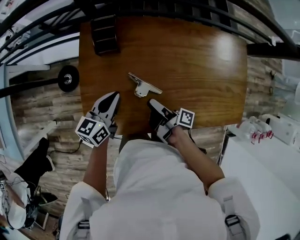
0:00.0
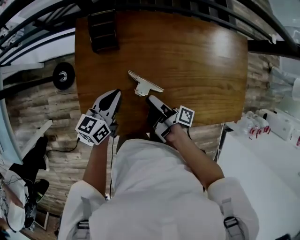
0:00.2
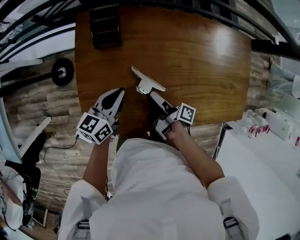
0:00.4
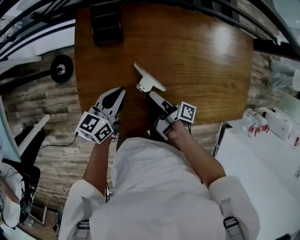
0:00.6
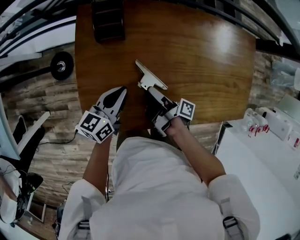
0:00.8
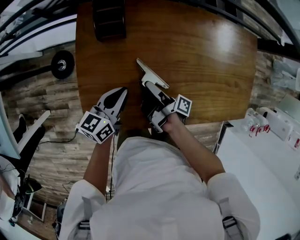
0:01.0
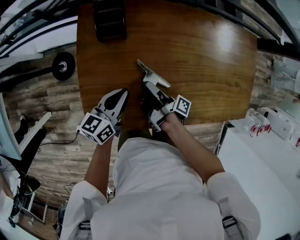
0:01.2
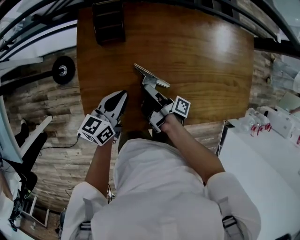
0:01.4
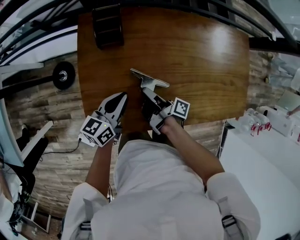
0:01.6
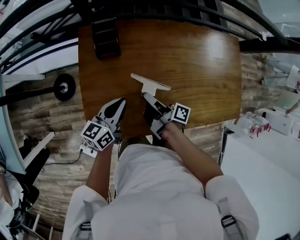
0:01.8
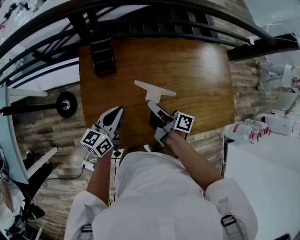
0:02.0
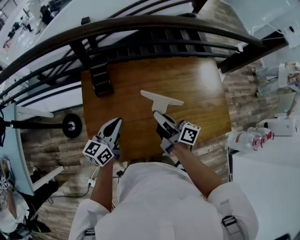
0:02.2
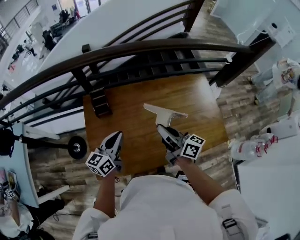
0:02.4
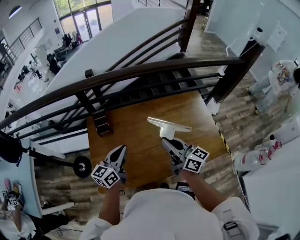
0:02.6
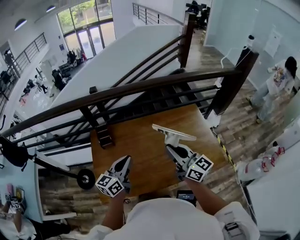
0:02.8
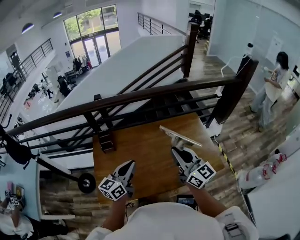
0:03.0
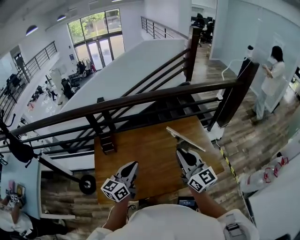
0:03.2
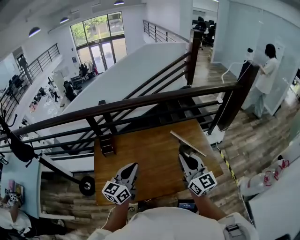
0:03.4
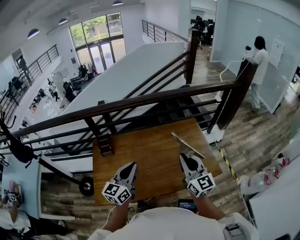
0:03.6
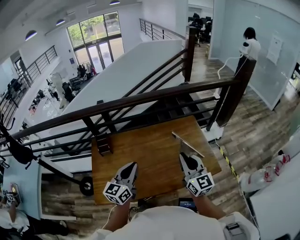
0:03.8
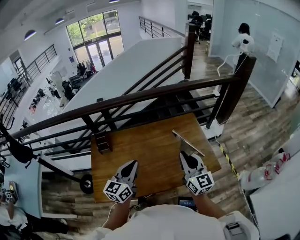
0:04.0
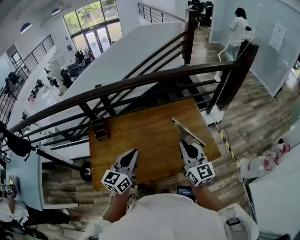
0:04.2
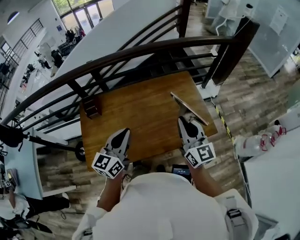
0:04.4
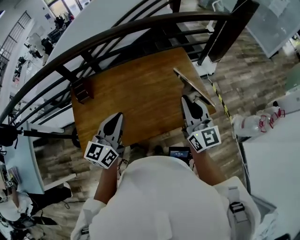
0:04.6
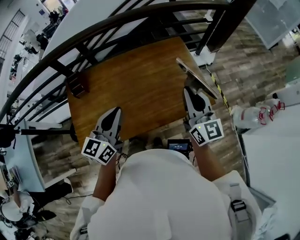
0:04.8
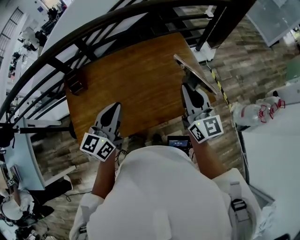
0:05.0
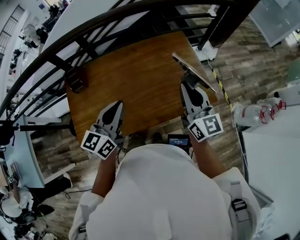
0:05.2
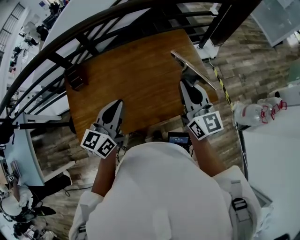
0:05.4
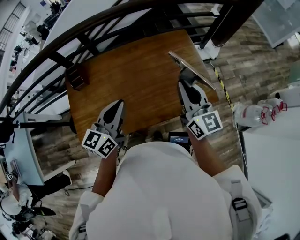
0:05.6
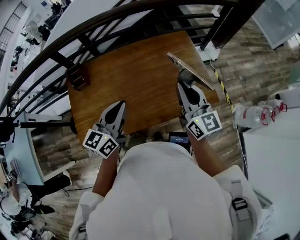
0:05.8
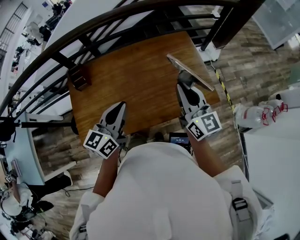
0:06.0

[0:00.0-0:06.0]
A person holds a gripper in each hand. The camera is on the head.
0:00.0 to 0:01.6: The right gripper moves approximately 5 cm, and closes.
0:01.6 to 0:03.0: The left gripper goes some 35 cm upward and to the right, and swivels some 30 degrees. Meanwhile the right gripper goes about 50 cm upward and to the right, and rotates around the line of its fingers by some 90 degrees, counterclockwise from behind.
0:03.0 to 0:04.4: The grippers both shift to the right by about 10 cm.
0:04.4 to 0:06.0: There are only small adjustments of the grippers.

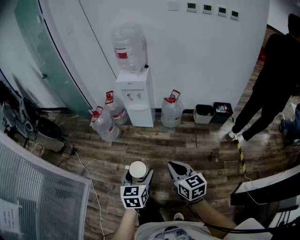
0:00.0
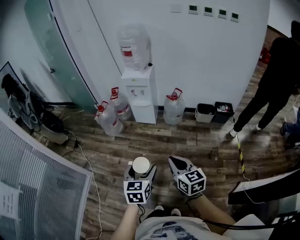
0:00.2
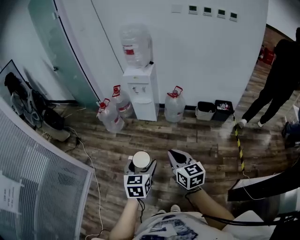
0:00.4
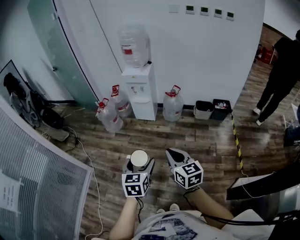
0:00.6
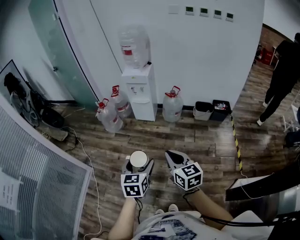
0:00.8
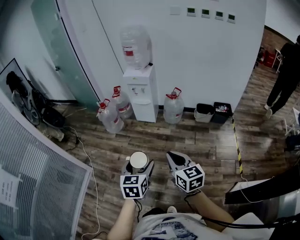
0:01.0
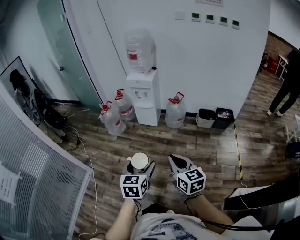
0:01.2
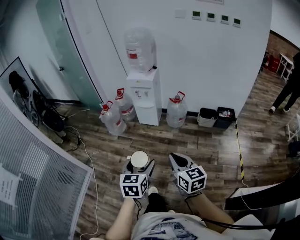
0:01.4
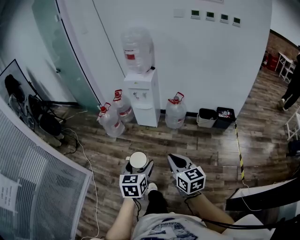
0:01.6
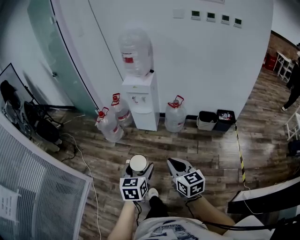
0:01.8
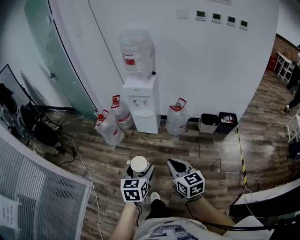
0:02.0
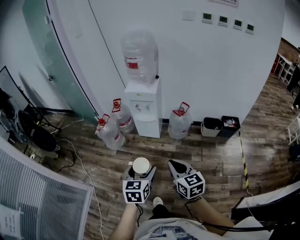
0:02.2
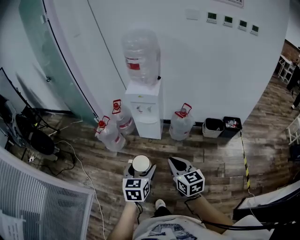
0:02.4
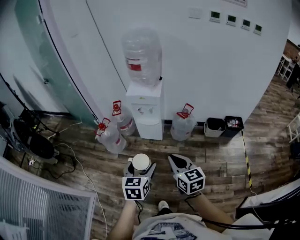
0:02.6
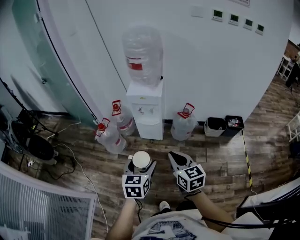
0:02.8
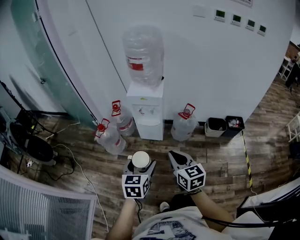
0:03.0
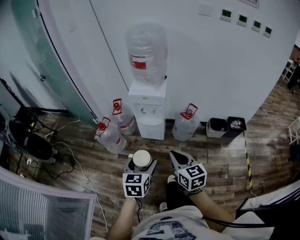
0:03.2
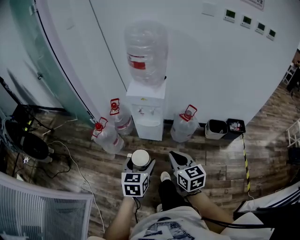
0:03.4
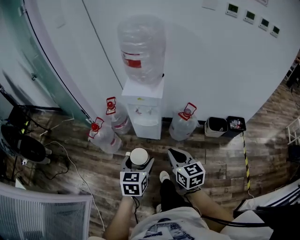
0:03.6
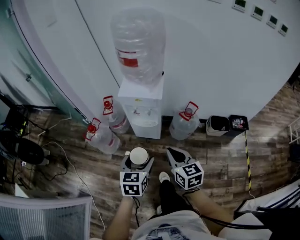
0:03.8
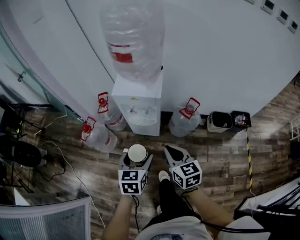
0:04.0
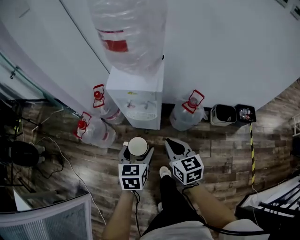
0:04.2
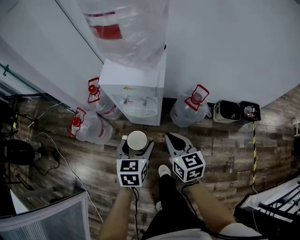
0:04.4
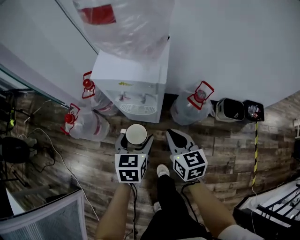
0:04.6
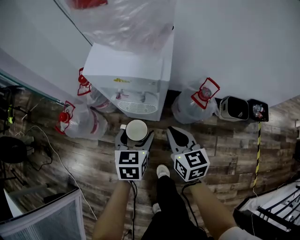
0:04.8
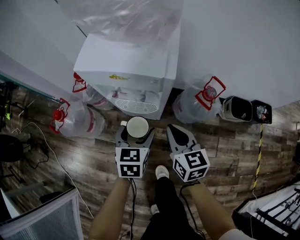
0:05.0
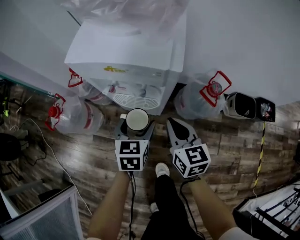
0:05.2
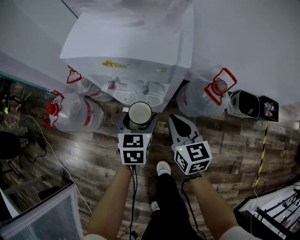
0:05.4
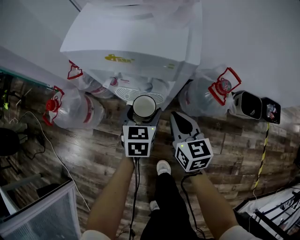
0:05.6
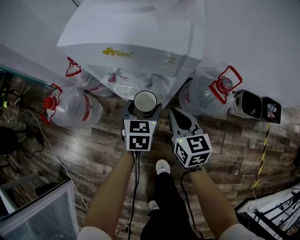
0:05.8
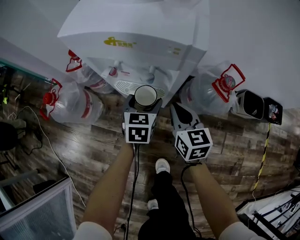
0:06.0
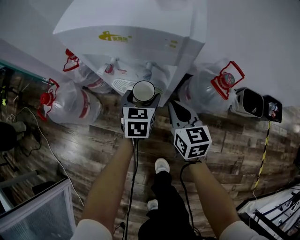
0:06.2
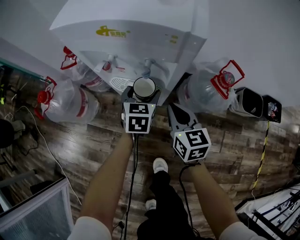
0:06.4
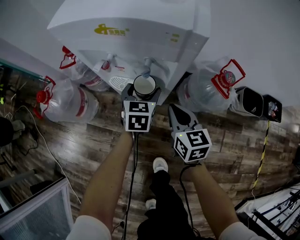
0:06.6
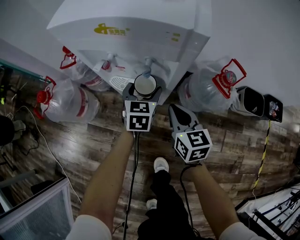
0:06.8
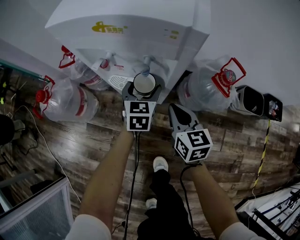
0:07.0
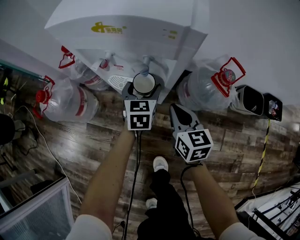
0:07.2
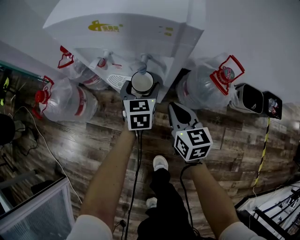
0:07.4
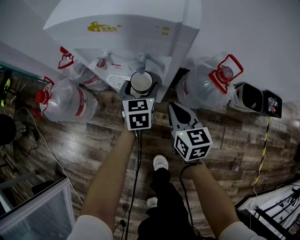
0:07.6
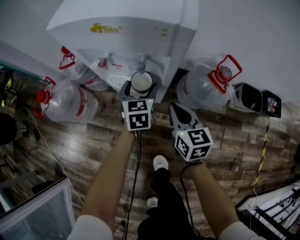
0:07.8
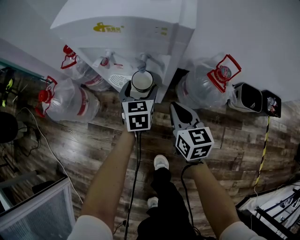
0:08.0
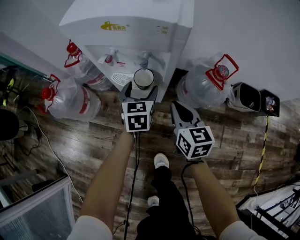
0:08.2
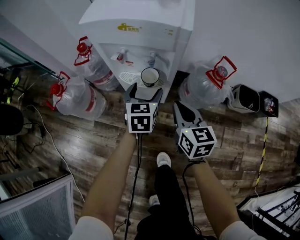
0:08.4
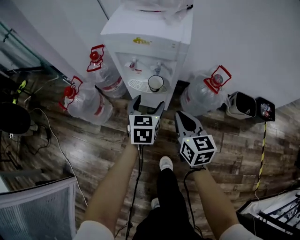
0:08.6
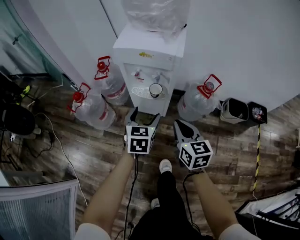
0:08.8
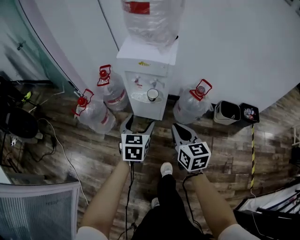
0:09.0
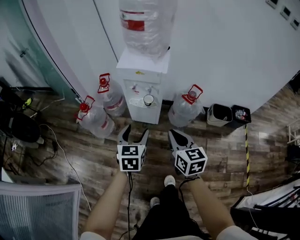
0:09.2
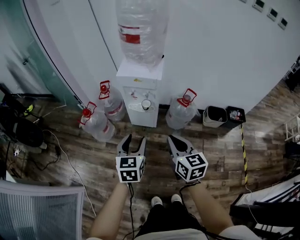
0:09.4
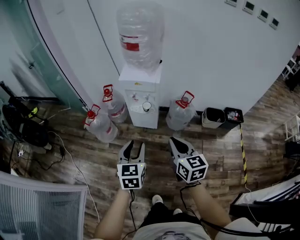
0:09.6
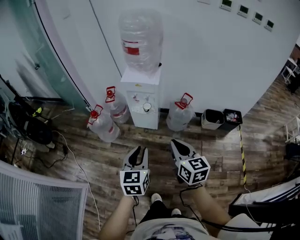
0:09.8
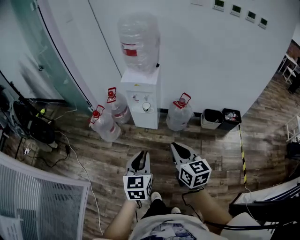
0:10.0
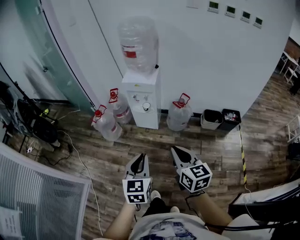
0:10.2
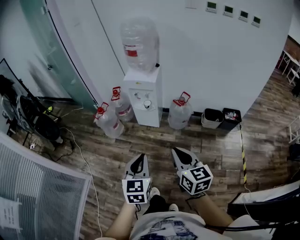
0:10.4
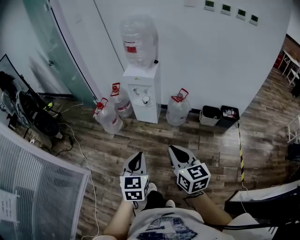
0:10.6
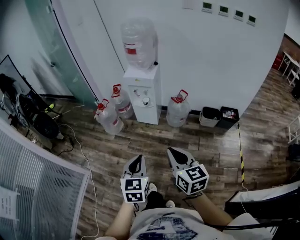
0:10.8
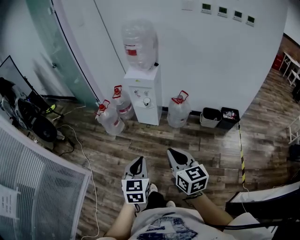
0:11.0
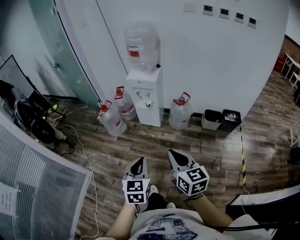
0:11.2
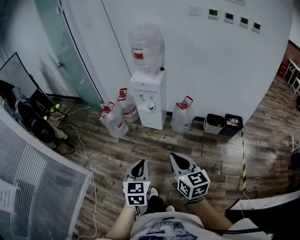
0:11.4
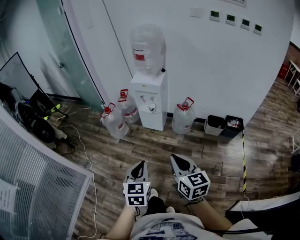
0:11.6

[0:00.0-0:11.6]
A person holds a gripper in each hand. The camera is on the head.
0:00.0 to 0:01.4: The right gripper goes some 10 cm backward, while the left gripper shifts approximately 10 cm backward and upward.
0:01.4 to 0:02.8: The two grippers go about 35 cm forward.
0:02.8 to 0:04.4: The two grippers go approximately 40 cm forward and downward.
0:04.4 to 0:05.8: The grippers both shift downward and forward by approximately 30 cm.
0:05.8 to 0:07.2: The left gripper moves about 5 cm; the right gripper is displaced downward by some 5 cm.
0:07.2 to 0:08.8: The left gripper heads backward and upward, covering about 30 cm, while the right gripper moves upward and backward, some 25 cm.
0:08.8 to 0:10.2: Both grippers move backward and upward, roughly 50 cm. The left gripper closes.
0:10.2 to 0:11.6: The two grippers go some 10 cm backward.

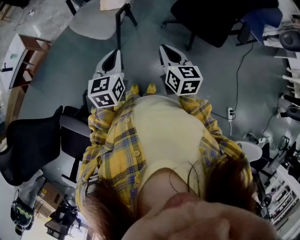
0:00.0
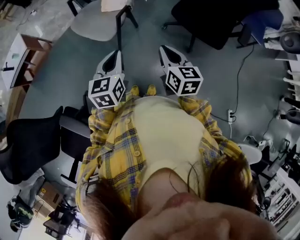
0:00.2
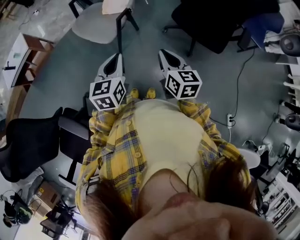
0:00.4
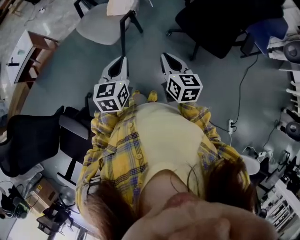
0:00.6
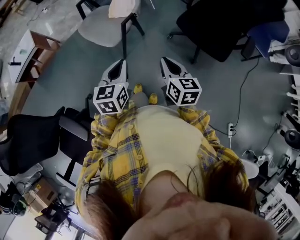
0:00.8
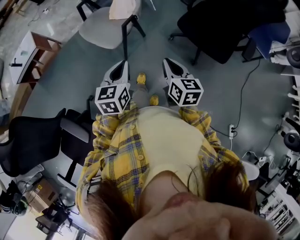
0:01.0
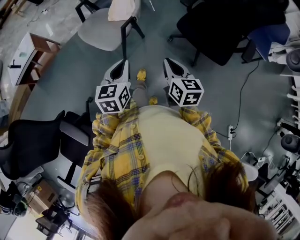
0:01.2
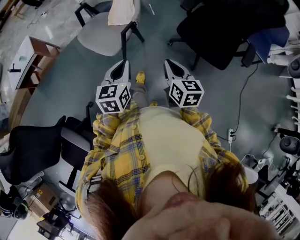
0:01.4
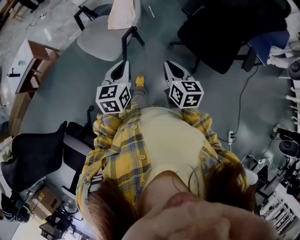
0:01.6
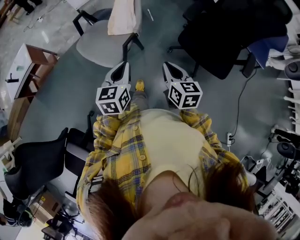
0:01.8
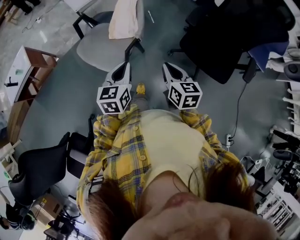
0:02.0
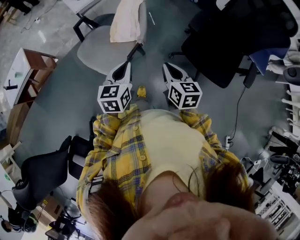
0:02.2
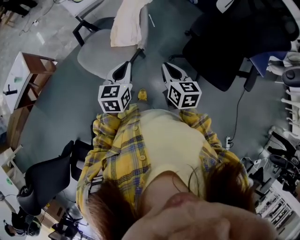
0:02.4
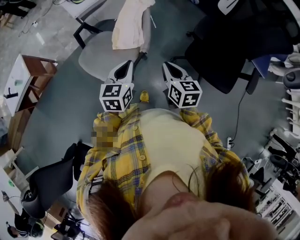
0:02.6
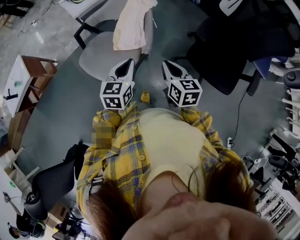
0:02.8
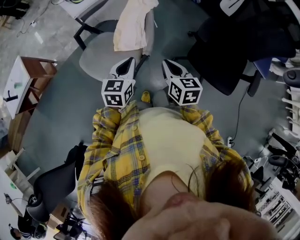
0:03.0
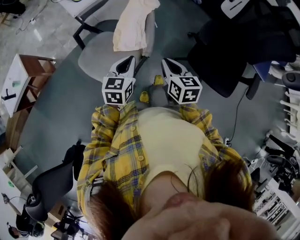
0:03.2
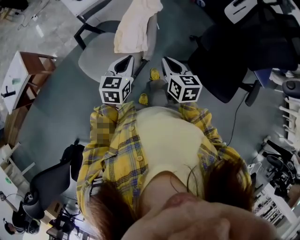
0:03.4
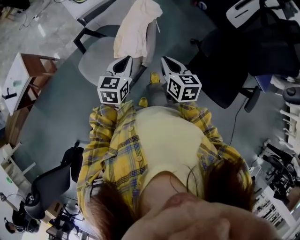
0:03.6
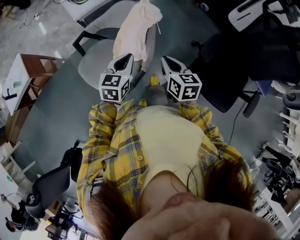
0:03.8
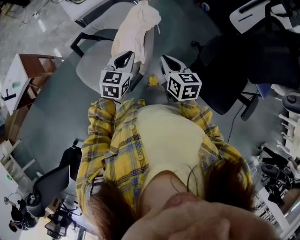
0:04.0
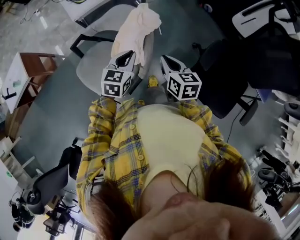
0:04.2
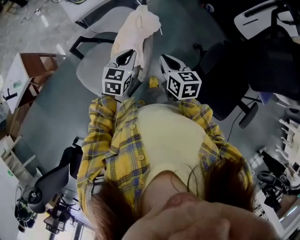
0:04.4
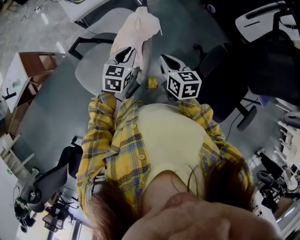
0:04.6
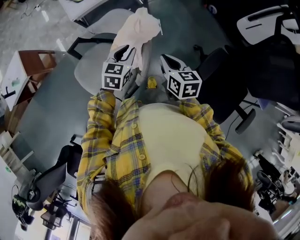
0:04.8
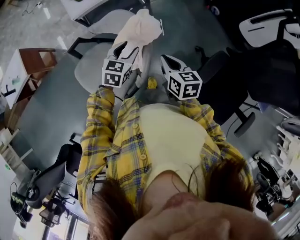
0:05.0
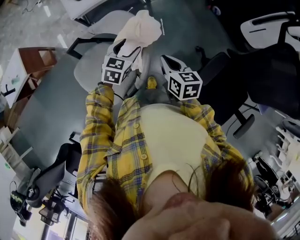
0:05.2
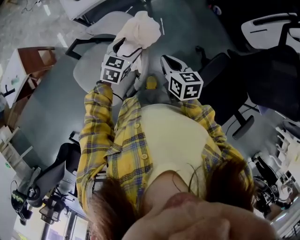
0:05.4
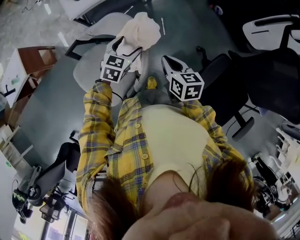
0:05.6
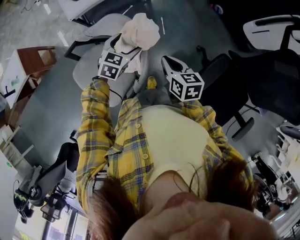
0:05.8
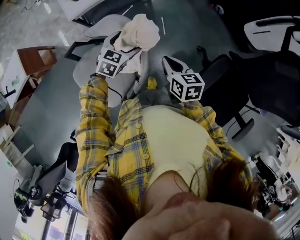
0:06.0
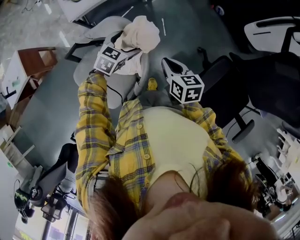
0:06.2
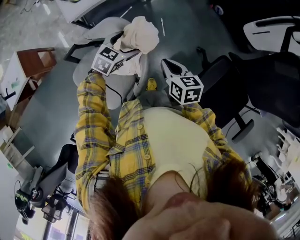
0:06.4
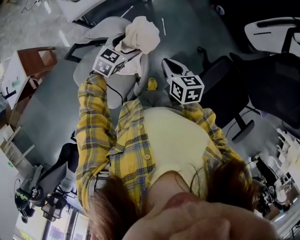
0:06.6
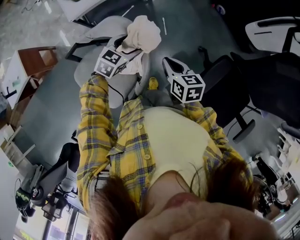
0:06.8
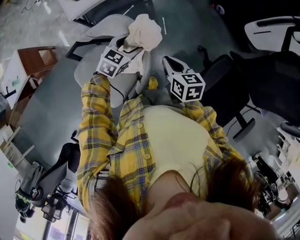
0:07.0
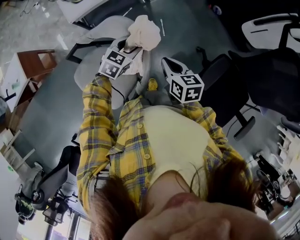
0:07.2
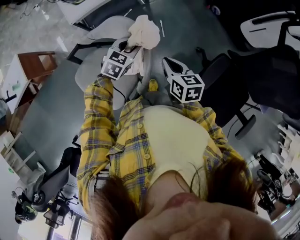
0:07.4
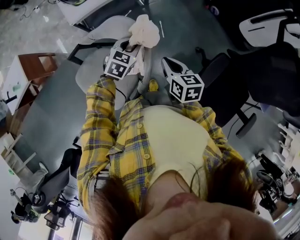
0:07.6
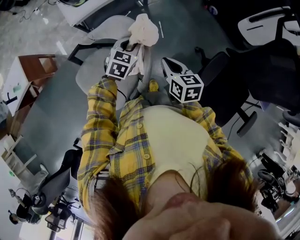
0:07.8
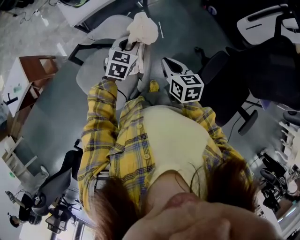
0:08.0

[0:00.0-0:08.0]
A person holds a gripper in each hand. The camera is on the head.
0:00.0 to 0:01.6: Both grippers move forward, about 10 cm.
0:01.6 to 0:03.2: Both grippers move forward, about 25 cm.
0:03.2 to 0:04.8: Both grippers travel together forward, some 20 cm.
0:04.8 to 0:06.4: The left gripper moves forward and downward, some 10 cm, swivels roughly 20 degrees, and opens its fingers; the right gripper ends up roughly 5 cm from where it was.
0:06.4 to 0:08.0: The left gripper heads upward, covering some 5 cm, and closes.
